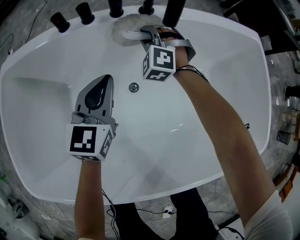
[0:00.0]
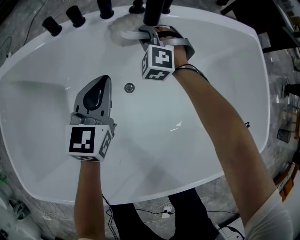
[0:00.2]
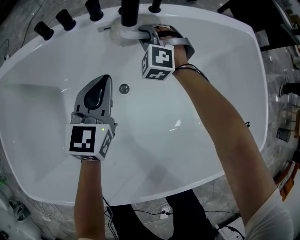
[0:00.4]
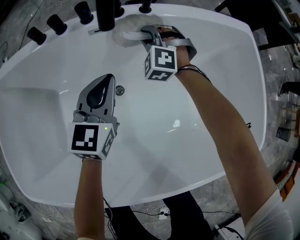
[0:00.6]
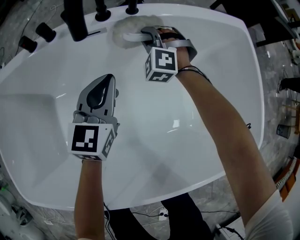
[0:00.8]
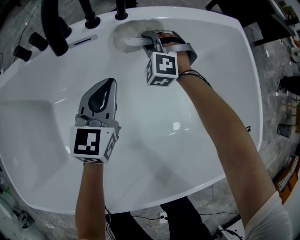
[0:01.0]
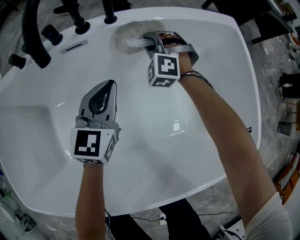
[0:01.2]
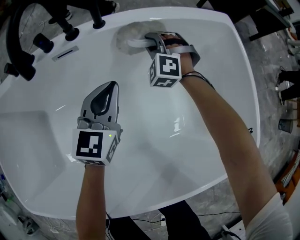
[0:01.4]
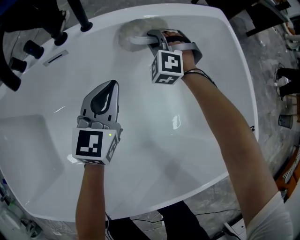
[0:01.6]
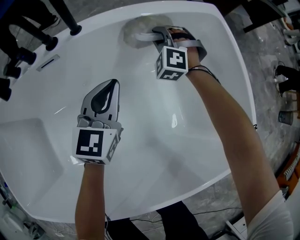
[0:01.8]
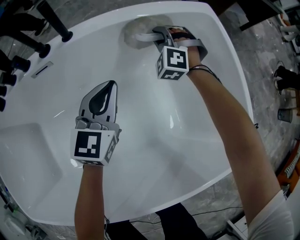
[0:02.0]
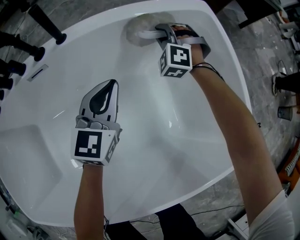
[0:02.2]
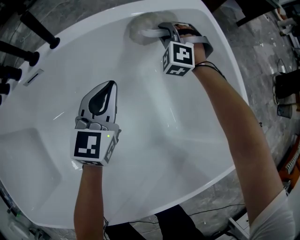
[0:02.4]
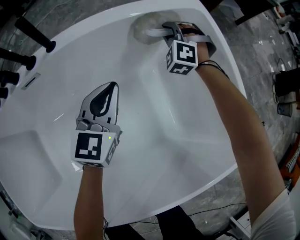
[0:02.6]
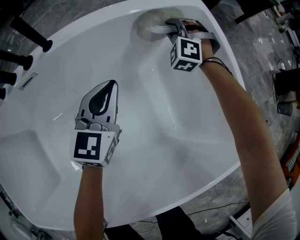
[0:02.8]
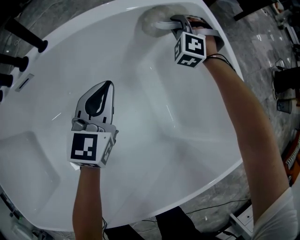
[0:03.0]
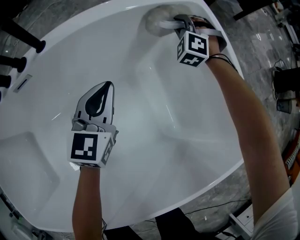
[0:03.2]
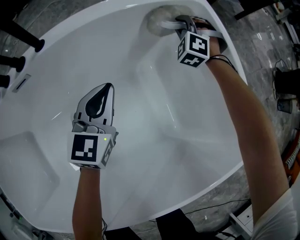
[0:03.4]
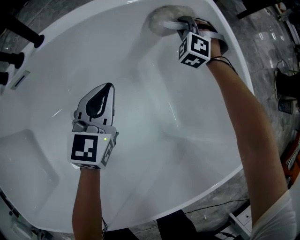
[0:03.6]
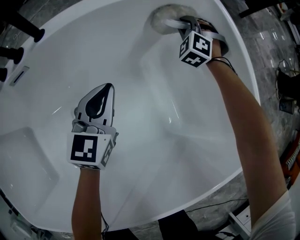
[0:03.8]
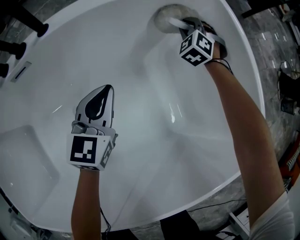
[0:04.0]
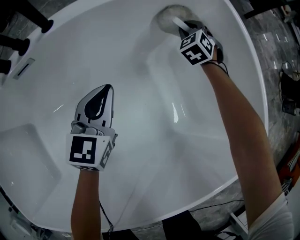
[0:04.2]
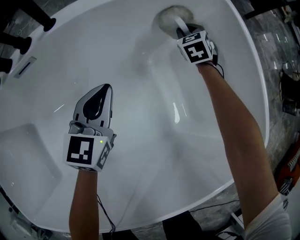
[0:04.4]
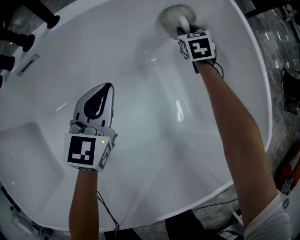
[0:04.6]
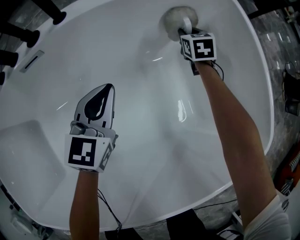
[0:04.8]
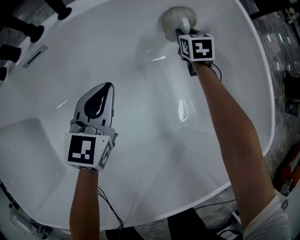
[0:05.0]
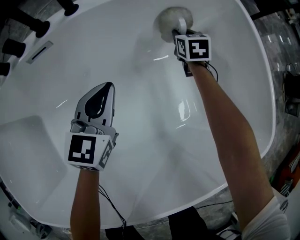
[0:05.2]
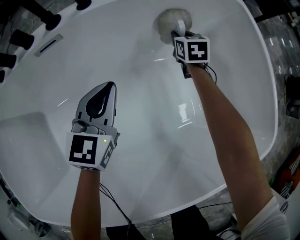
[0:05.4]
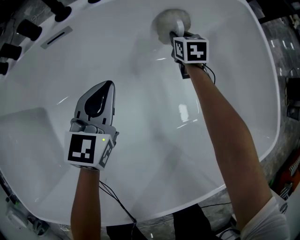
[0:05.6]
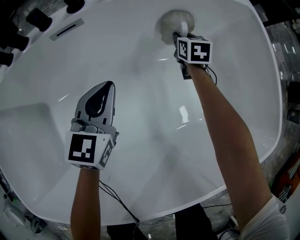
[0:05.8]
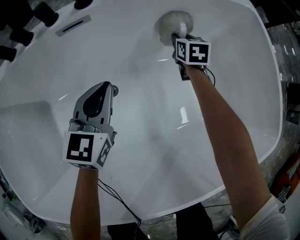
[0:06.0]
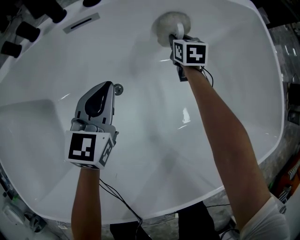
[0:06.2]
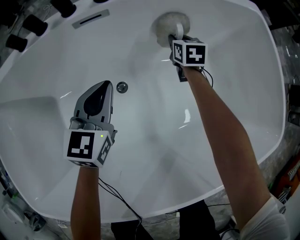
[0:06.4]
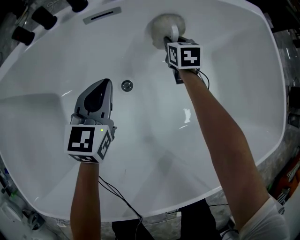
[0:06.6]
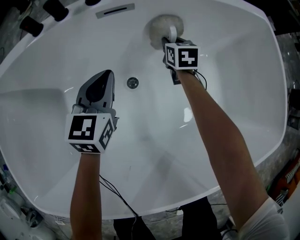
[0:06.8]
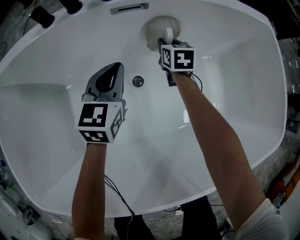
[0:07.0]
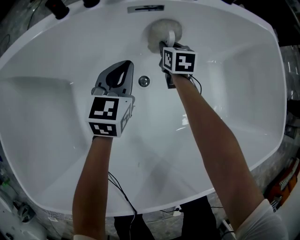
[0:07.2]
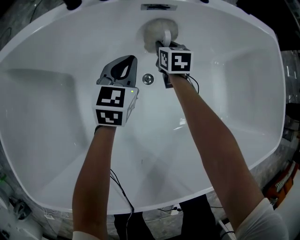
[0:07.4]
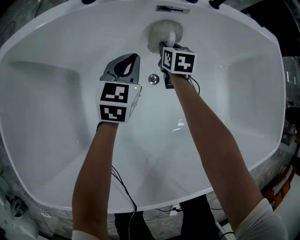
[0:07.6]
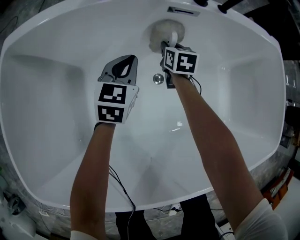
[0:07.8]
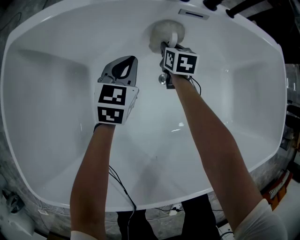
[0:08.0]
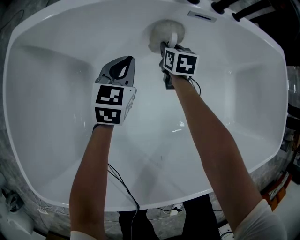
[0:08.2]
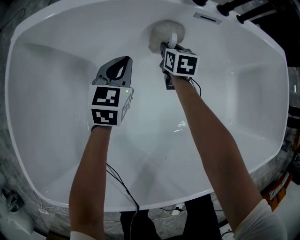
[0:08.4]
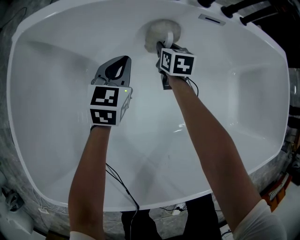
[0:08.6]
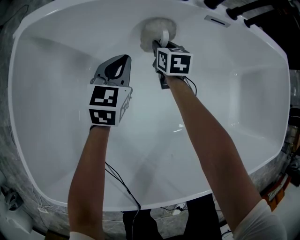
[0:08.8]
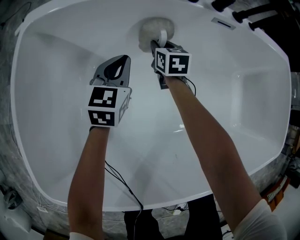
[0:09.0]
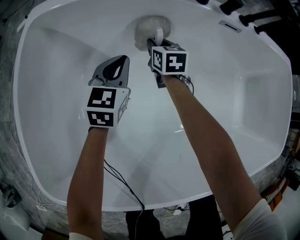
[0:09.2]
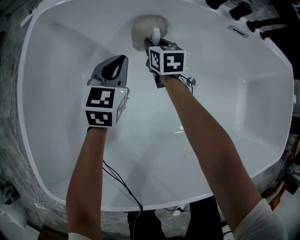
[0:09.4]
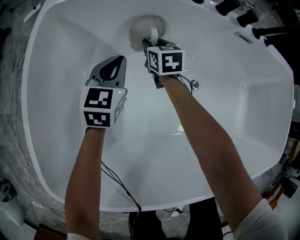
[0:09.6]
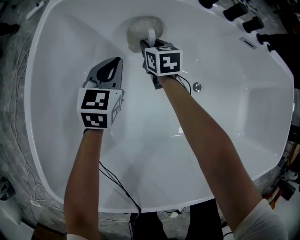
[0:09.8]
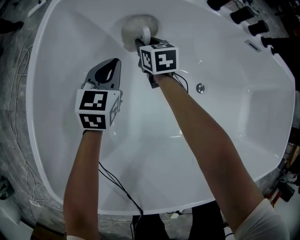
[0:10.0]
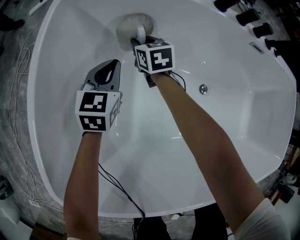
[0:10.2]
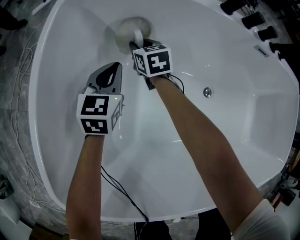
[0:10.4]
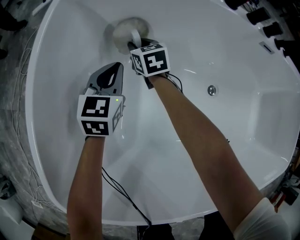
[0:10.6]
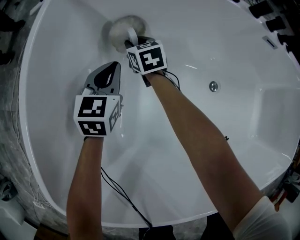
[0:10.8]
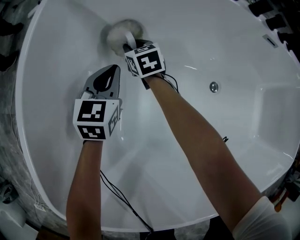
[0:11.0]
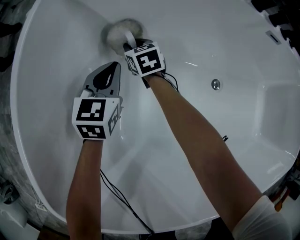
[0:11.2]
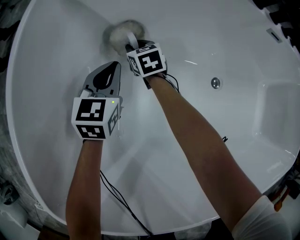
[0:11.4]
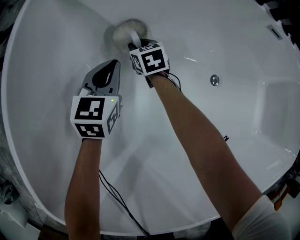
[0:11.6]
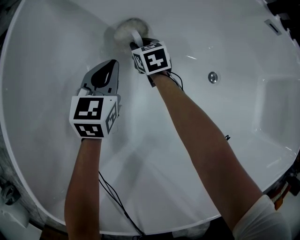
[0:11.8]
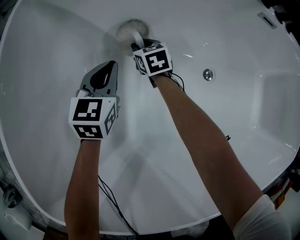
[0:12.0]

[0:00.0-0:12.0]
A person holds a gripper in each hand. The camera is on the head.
0:00.0 to 0:01.6: The two grippers go roughly 30 cm to the right.
0:01.6 to 0:03.0: The left gripper heads to the right, covering roughly 10 cm; the right gripper travels to the right and forward by some 20 cm.
0:03.0 to 0:04.4: The left gripper moves about 10 cm; the right gripper goes roughly 10 cm downward, and rotates around the line of its fingers by roughly 50 degrees, clockwise from behind.
0:04.4 to 0:06.0: Both grippers move to the left and backward, approximately 20 cm. The right gripper swivels approximately 30 degrees.
0:06.0 to 0:07.6: The right gripper heads to the left, covering approximately 30 cm, while the left gripper shifts some 20 cm to the left.
0:07.6 to 0:09.0: The grippers both shift to the left by approximately 20 cm.
0:09.0 to 0:10.4: The two grippers go some 25 cm to the left.
0:10.4 to 0:12.0: The left gripper heads downward and to the right, covering roughly 10 cm; the right gripper heads downward and to the right, covering some 15 cm.

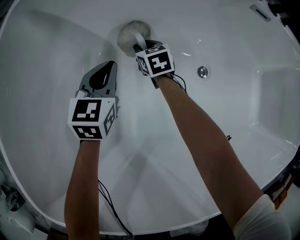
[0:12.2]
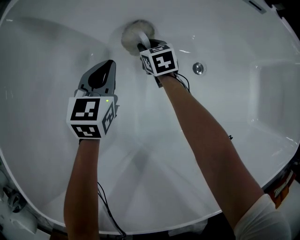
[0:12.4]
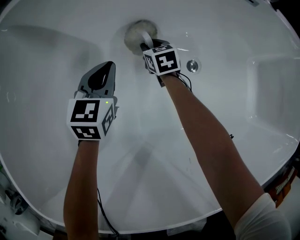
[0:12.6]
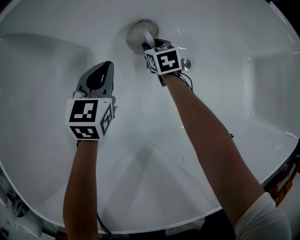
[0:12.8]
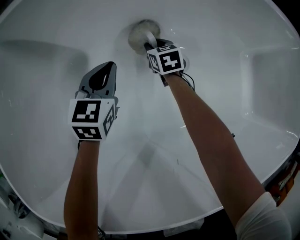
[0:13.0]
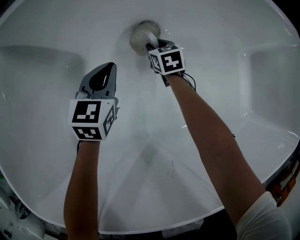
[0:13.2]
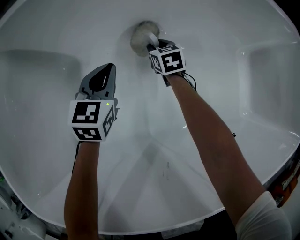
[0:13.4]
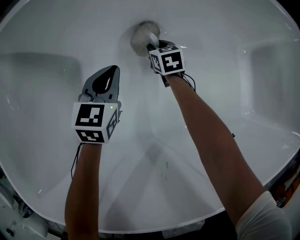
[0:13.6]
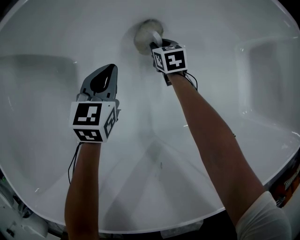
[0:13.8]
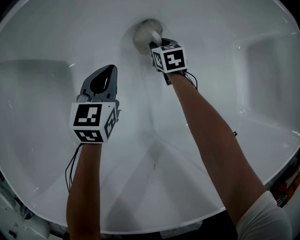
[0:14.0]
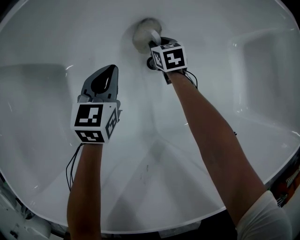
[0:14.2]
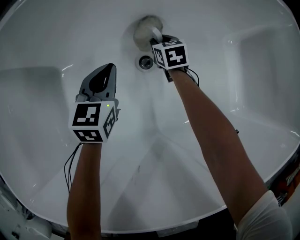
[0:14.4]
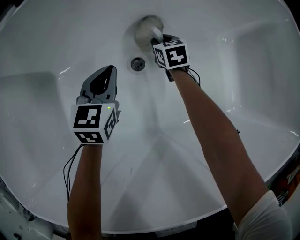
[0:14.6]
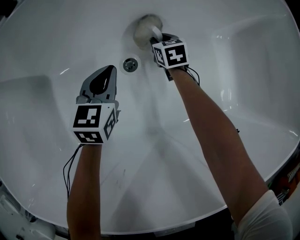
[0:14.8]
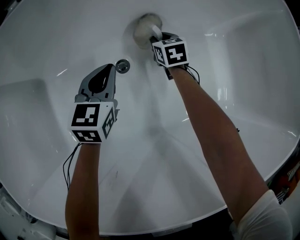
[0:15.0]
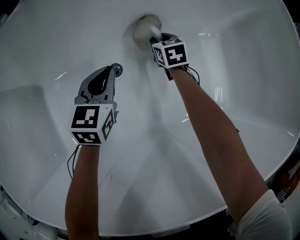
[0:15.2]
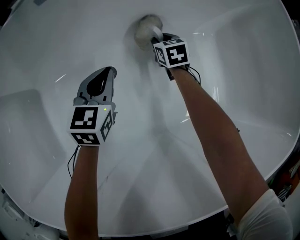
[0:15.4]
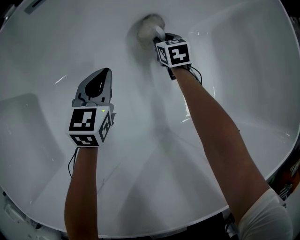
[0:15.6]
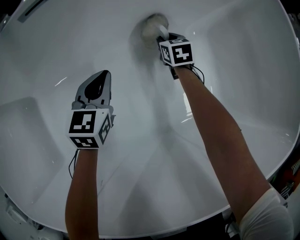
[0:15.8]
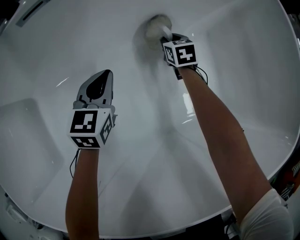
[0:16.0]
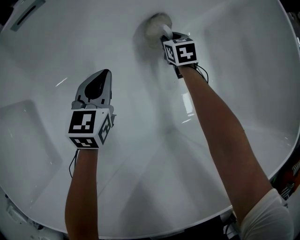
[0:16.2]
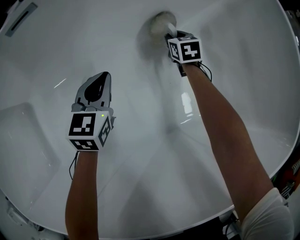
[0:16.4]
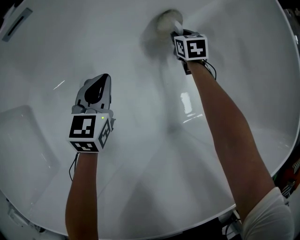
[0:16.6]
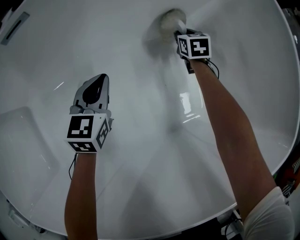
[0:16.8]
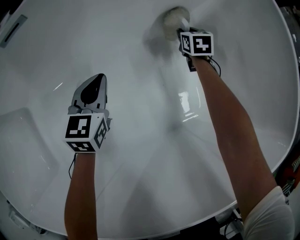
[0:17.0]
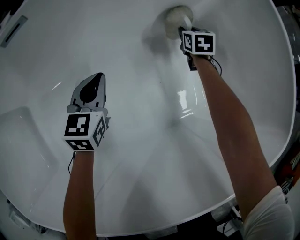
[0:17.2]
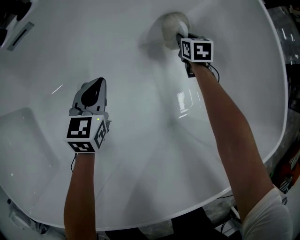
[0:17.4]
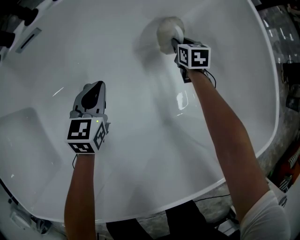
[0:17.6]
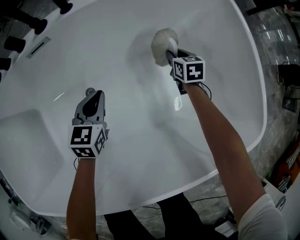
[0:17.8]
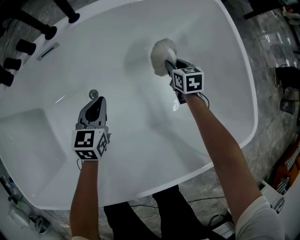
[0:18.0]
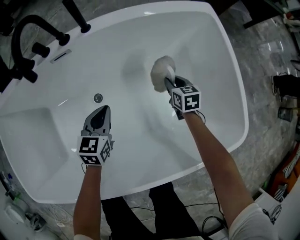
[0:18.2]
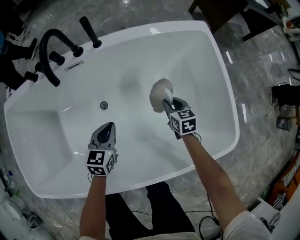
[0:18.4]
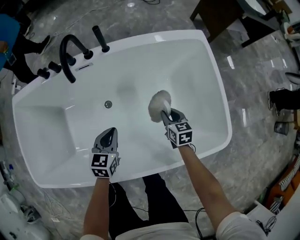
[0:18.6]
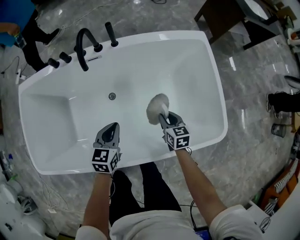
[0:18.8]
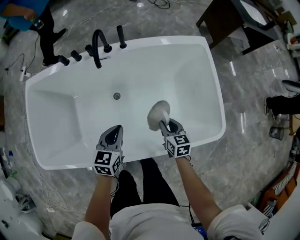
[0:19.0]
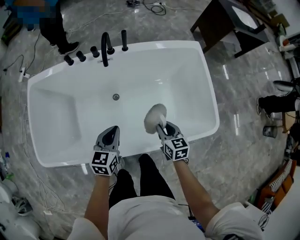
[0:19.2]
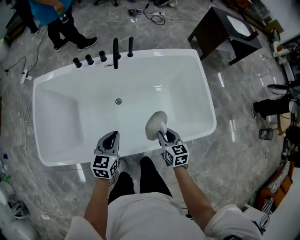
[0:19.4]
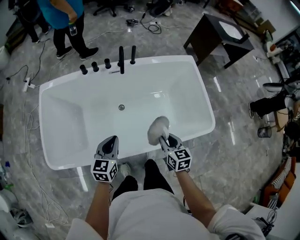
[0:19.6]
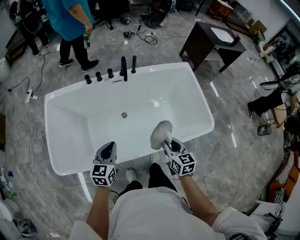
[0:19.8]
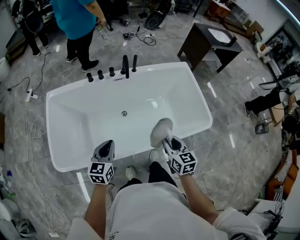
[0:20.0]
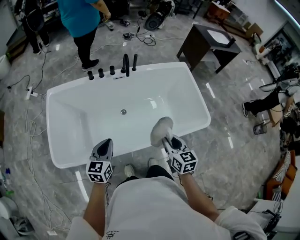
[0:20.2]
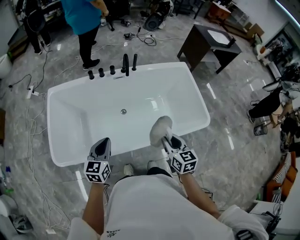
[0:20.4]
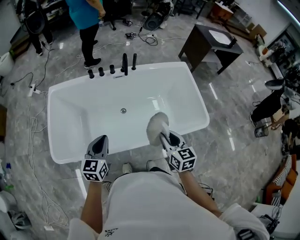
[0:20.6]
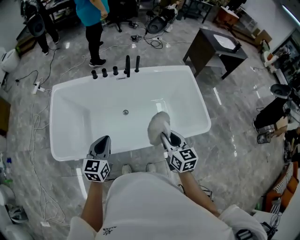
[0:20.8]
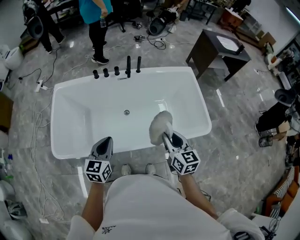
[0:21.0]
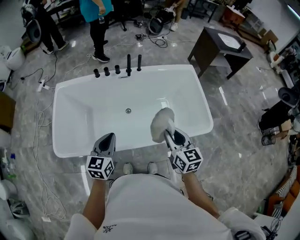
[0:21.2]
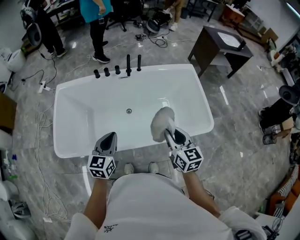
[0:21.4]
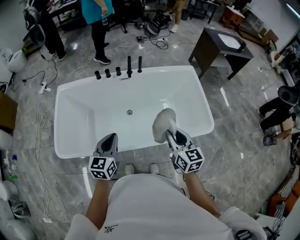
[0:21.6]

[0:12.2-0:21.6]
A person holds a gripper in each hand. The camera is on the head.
0:12.2 to 0:13.8: The two grippers go about 25 cm to the right.
0:13.8 to 0:15.4: The grippers both shift to the right by about 25 cm.
0:15.4 to 0:17.0: The left gripper goes approximately 10 cm to the right. Meanwhile the right gripper moves to the right, some 20 cm.
0:17.0 to 0:18.4: The two grippers go about 30 cm upward and backward.
0:18.4 to 0:20.0: The two grippers go some 50 cm upward, backward and to the left.
0:20.0 to 0:21.6: The left gripper heads to the right and upward, covering roughly 10 cm; the right gripper moves upward and to the right, about 10 cm.

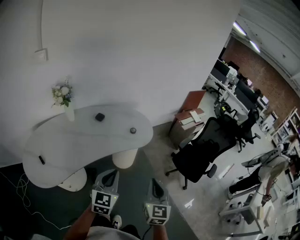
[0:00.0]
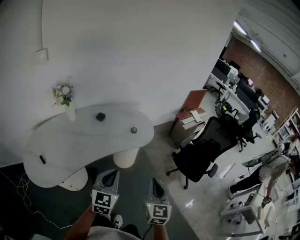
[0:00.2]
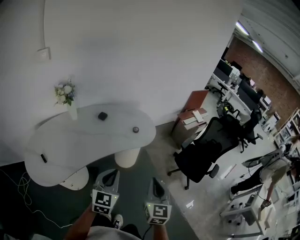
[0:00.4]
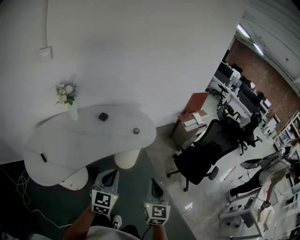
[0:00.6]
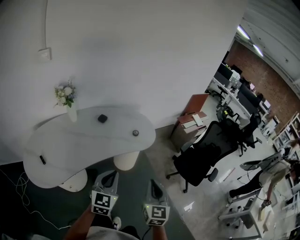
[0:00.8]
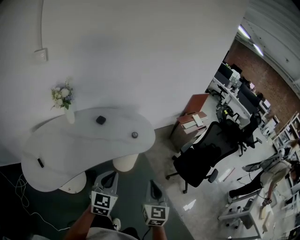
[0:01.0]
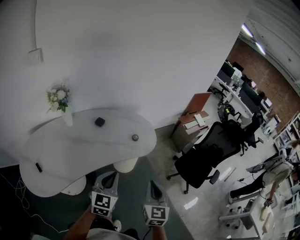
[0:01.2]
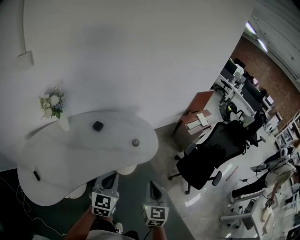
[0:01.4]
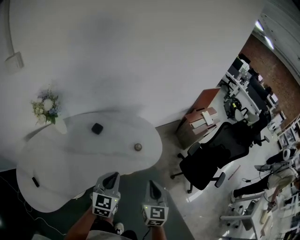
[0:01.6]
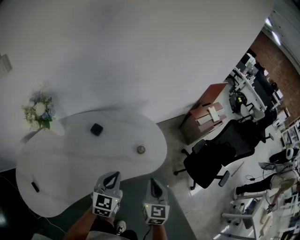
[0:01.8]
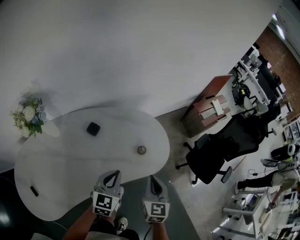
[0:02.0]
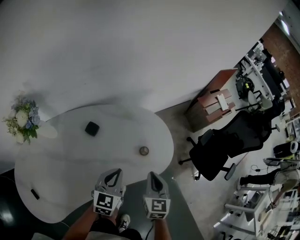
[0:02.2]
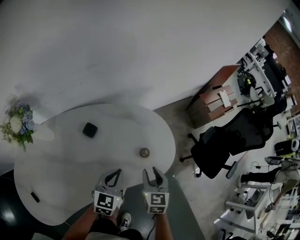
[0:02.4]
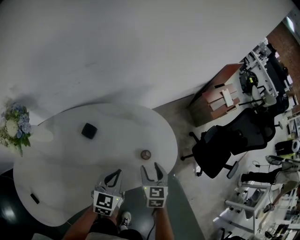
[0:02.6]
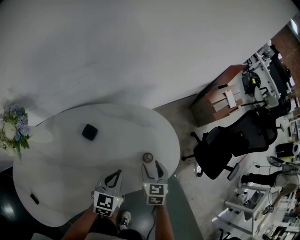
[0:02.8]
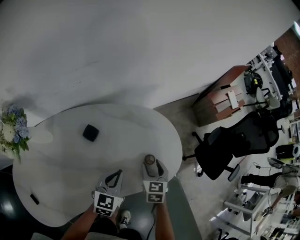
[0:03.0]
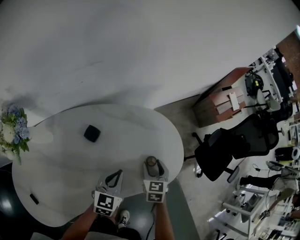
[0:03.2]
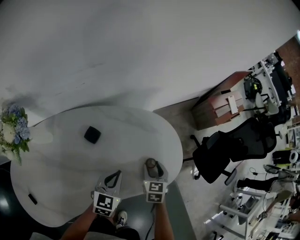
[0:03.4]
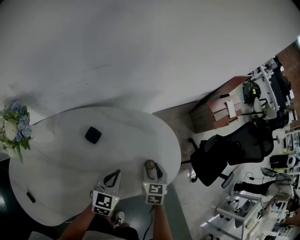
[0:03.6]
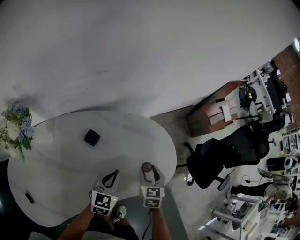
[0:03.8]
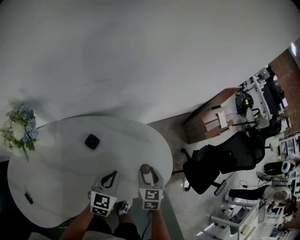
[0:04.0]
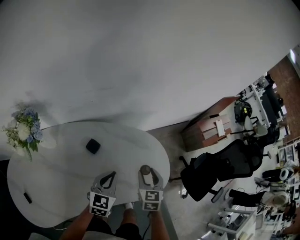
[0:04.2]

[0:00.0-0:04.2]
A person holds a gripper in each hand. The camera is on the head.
0:00.0 to 0:01.4: Both grippers move forward, some 15 cm.
0:01.4 to 0:02.8: The two grippers go about 30 cm forward and downward. The right gripper turns by approximately 20 degrees, and opens its fingers.
0:02.8 to 0:04.2: The right gripper is displaced upward and forward by about 10 cm, while the left gripper shifts about 5 cm upward.
